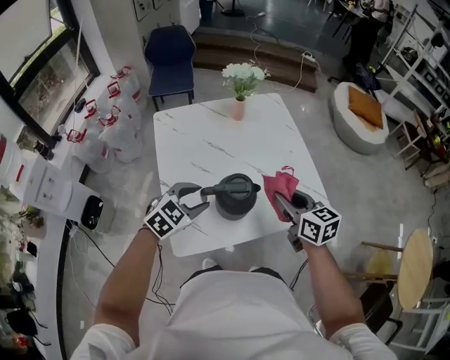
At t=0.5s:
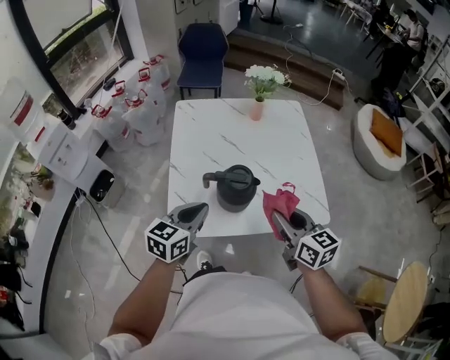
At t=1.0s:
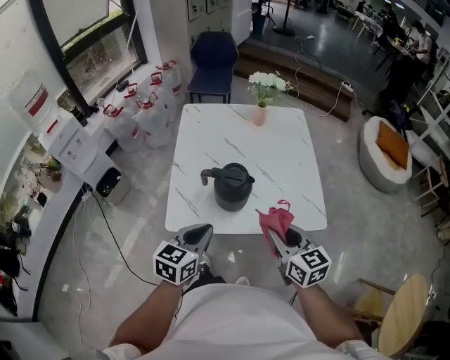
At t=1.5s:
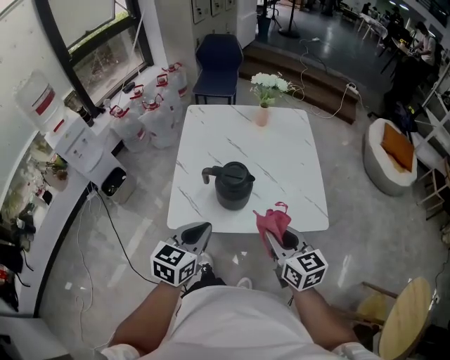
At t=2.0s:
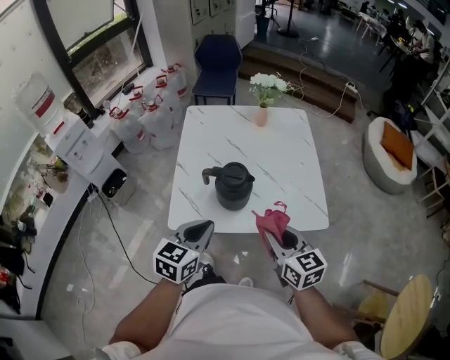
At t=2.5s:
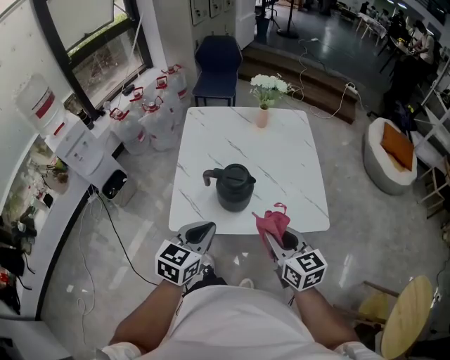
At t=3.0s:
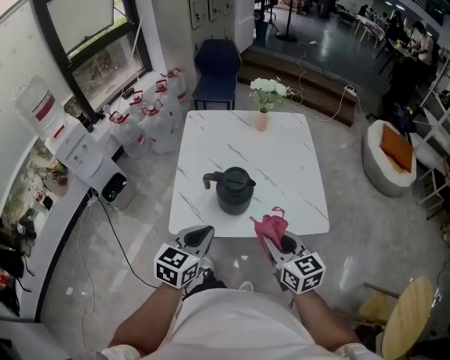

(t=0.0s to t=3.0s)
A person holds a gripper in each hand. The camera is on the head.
t=0.0s - t=1.5s: Both grippers travel together backward, approximately 15 cm. The left gripper turns by about 50 degrees, and closes up.
t=1.5s - t=3.0s: Both grippers stay about where they are.

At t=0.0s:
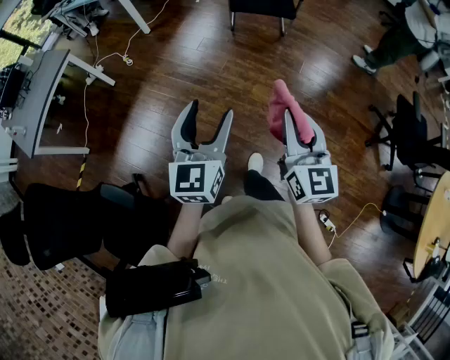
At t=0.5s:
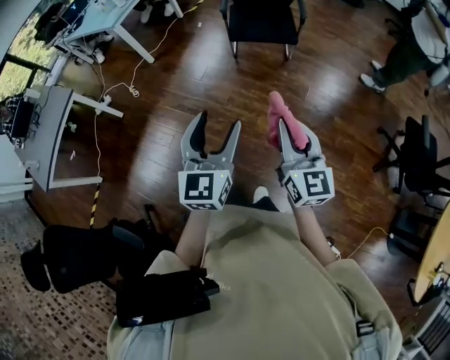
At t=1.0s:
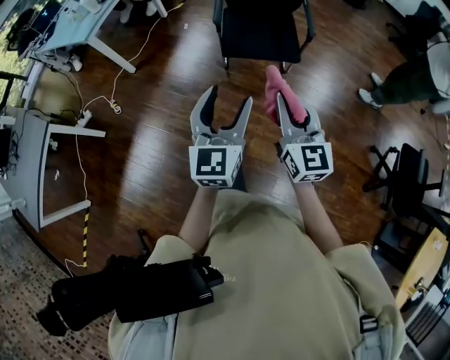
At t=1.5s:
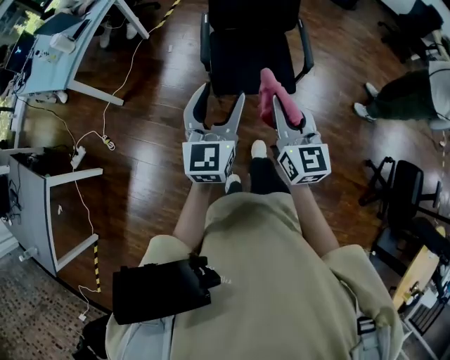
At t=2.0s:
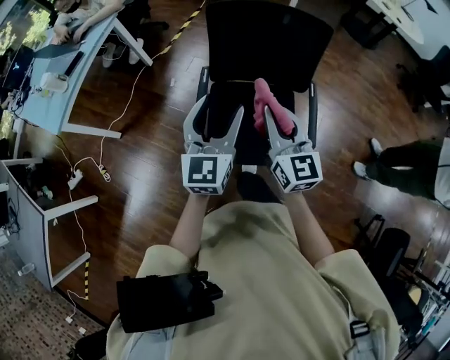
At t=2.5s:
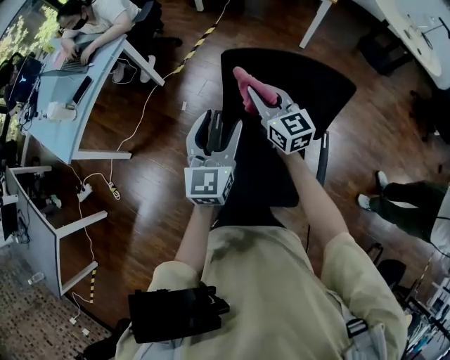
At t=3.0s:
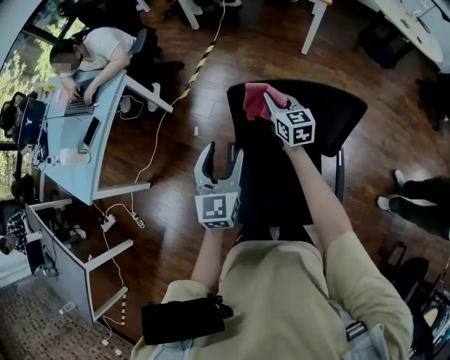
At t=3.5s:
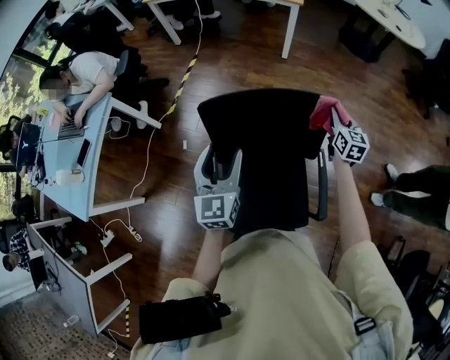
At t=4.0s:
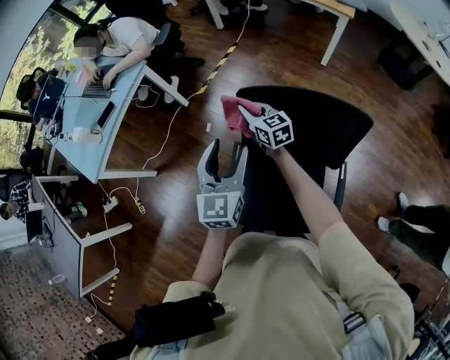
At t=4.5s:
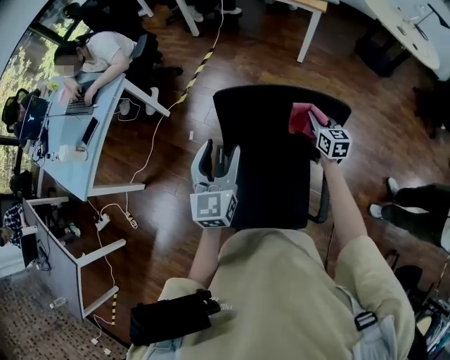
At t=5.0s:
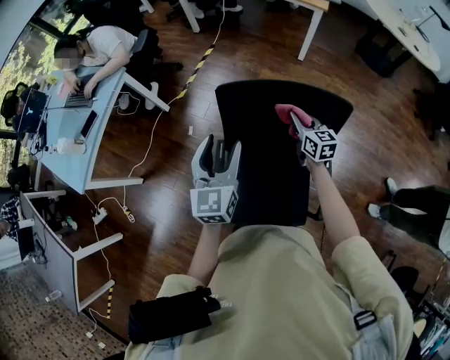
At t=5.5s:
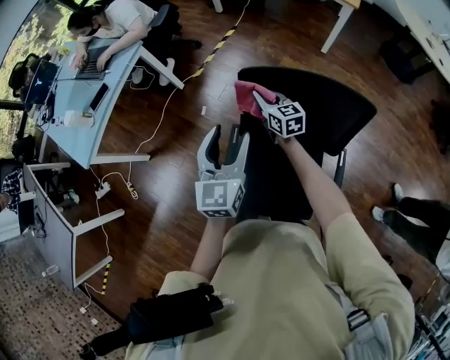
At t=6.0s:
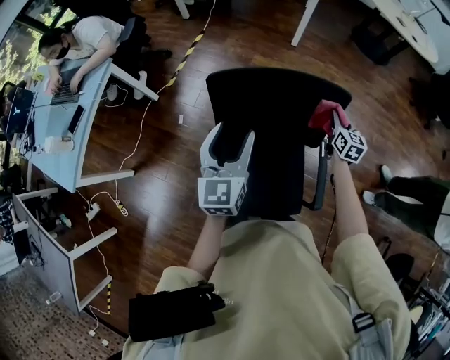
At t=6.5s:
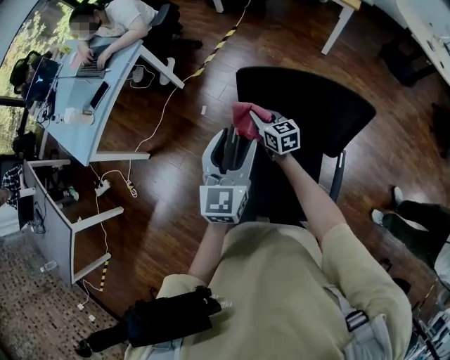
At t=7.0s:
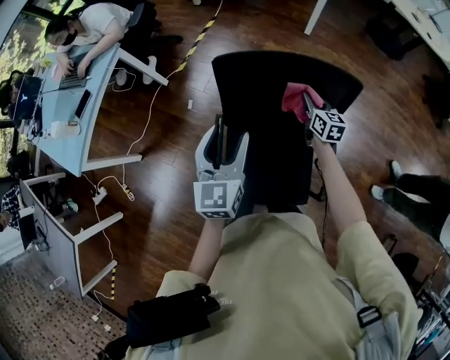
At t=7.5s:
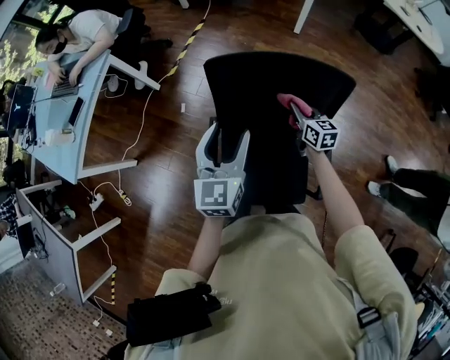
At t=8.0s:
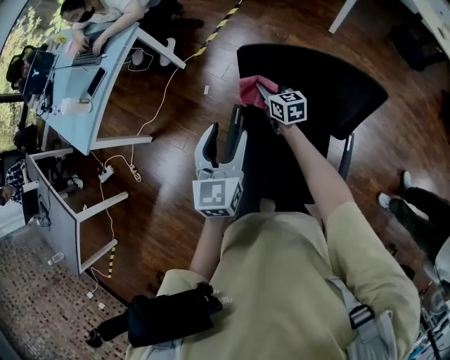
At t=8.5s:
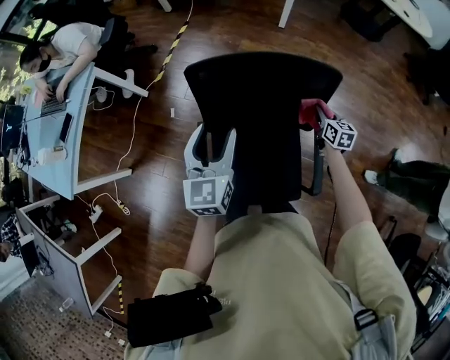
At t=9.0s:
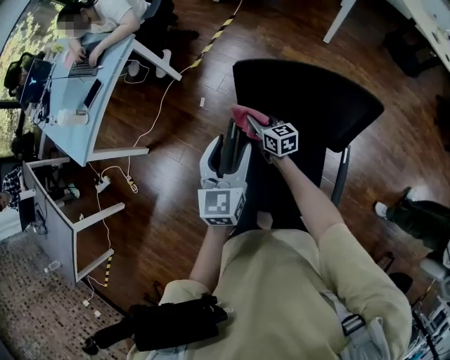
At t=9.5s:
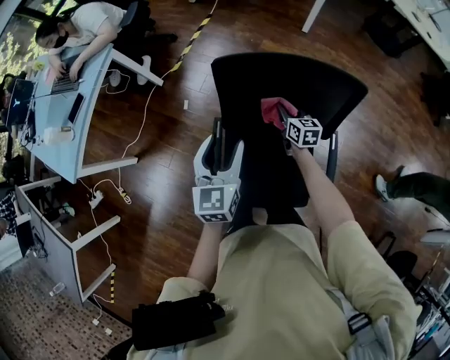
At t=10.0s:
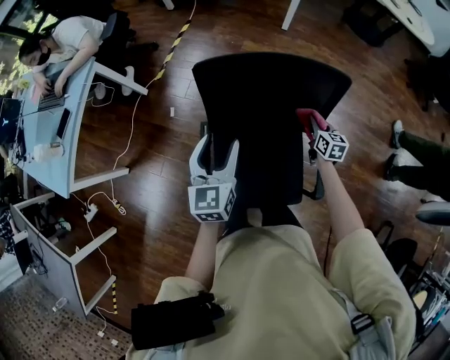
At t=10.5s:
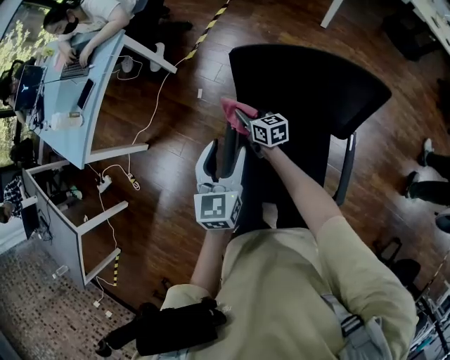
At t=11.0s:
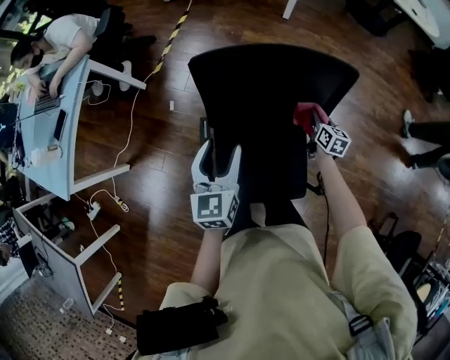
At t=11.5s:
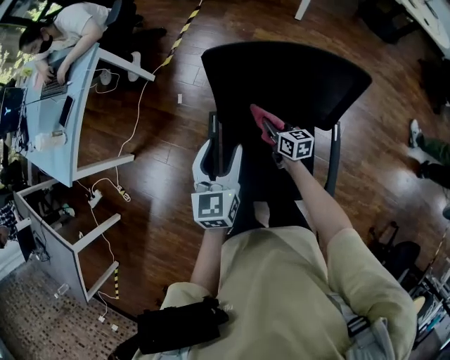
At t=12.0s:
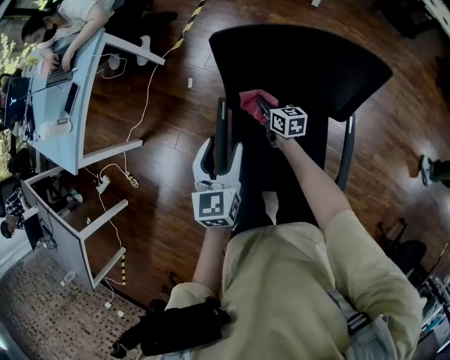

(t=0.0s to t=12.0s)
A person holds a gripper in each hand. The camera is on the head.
t=0.0s - t=2.0s: The two grippers travel together, forward, some 1 m.
t=2.0s - t=4.0s: The right gripper changes place by some 40 cm, and swivels about 30 degrees. The left gripper moves roughly 25 cm.
t=4.0s - t=6.0s: The right gripper shifts by roughly 40 cm, and swivels approximately 50 degrees. The left gripper shifts by approximately 5 cm.
t=6.0s - t=8.0s: The left gripper changes place by some 10 cm; the right gripper moves about 40 cm, and changes its angle by some 40 degrees.
t=8.0s - t=10.0s: The right gripper goes left and right, roughly 40 cm each way, reversing 2 times, and turns by approximately 30 degrees. The left gripper is displaced to the right by about 5 cm.
t=10.0s - t=12.0s: The right gripper changes place by some 30 cm, and rotates roughly 30 degrees. The left gripper shifts by about 10 cm.

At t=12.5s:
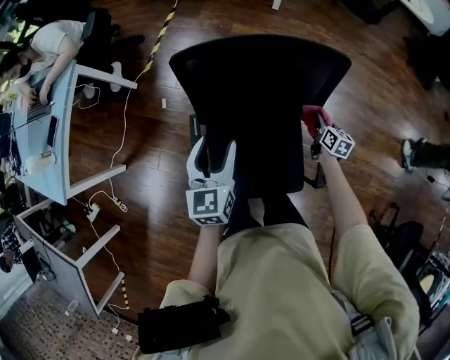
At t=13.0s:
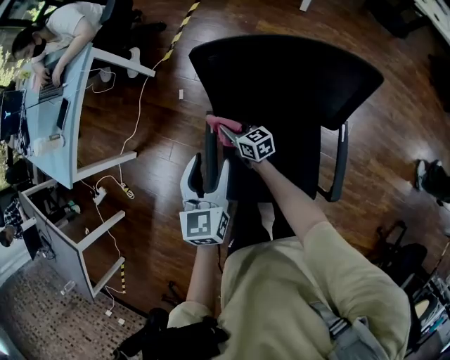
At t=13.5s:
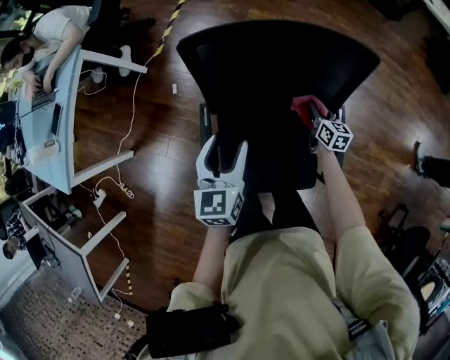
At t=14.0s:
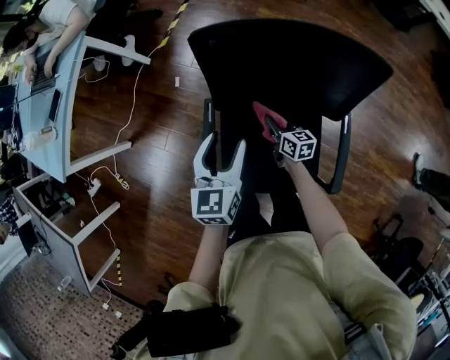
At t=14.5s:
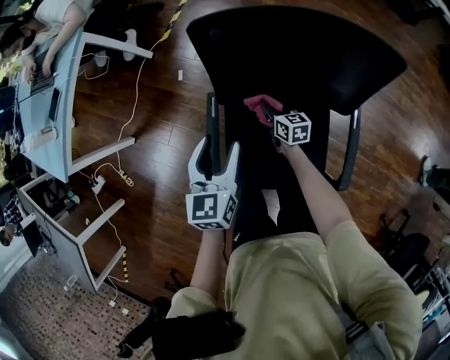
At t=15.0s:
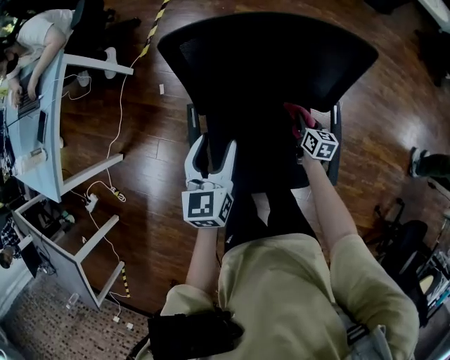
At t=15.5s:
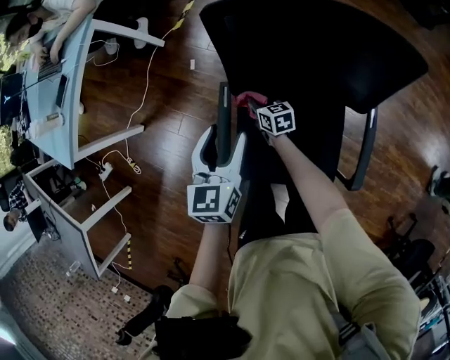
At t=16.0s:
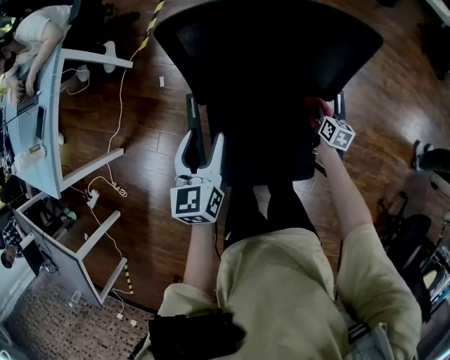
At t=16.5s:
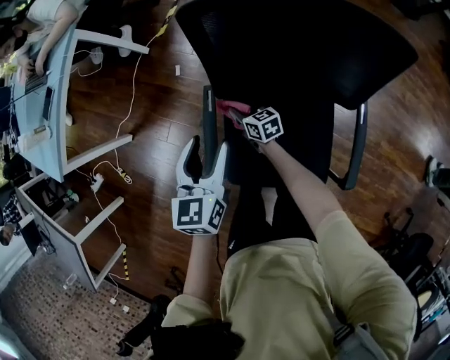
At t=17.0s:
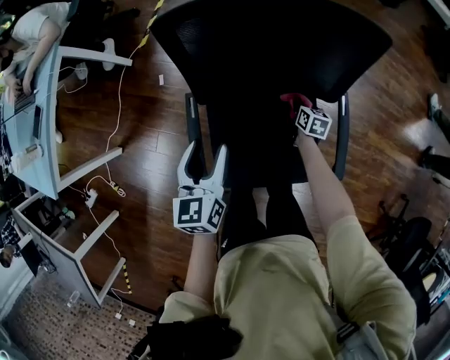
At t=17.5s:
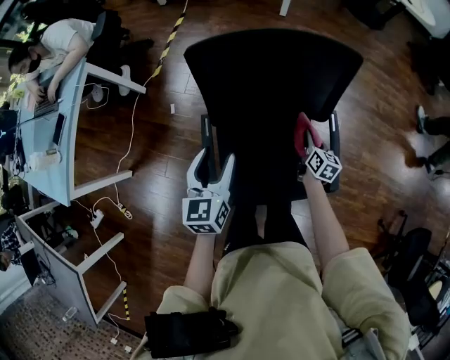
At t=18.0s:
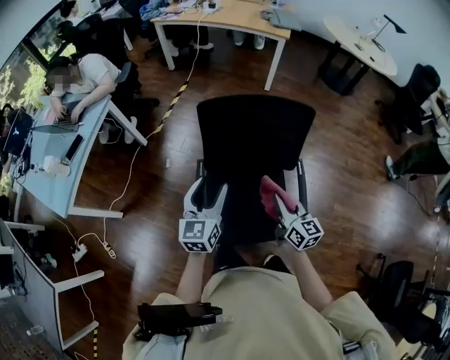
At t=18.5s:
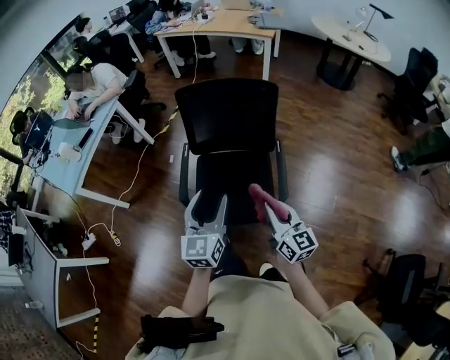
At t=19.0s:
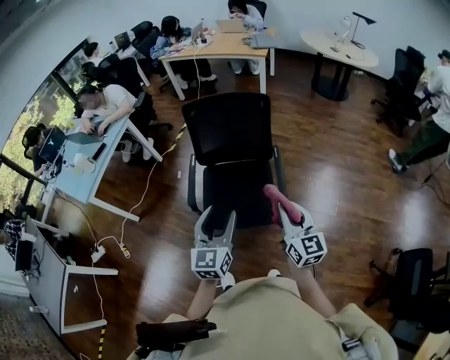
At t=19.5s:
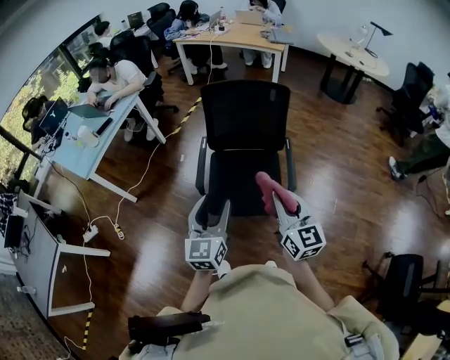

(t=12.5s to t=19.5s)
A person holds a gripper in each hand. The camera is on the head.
t=12.5s - t=14.5s: The right gripper moves roughly 30 cm, and rotates some 30 degrees. The left gripper shifts about 5 cm downward.
t=14.5s - t=16.0s: The right gripper goes left and right, roughly 35 cm each way, reversing 2 times, and swivels approximately 30 degrees.
t=16.0s - t=17.5s: The right gripper shifts about 10 cm upward.
t=17.5s - t=19.5s: Both grippers are carried backward, roughly 40 cm. The left gripper is displaced upward by approximately 20 cm, and rotates roughly 20 degrees. Meanwhile the right gripper goes roughly 40 cm upward, and tilts its fingers roughly 30 degrees upward.

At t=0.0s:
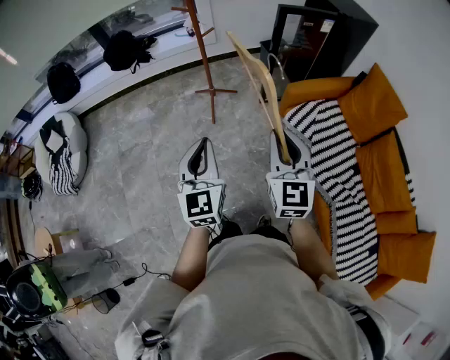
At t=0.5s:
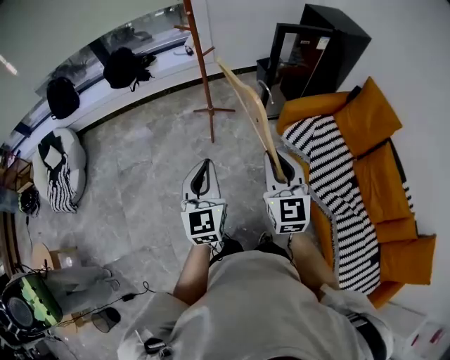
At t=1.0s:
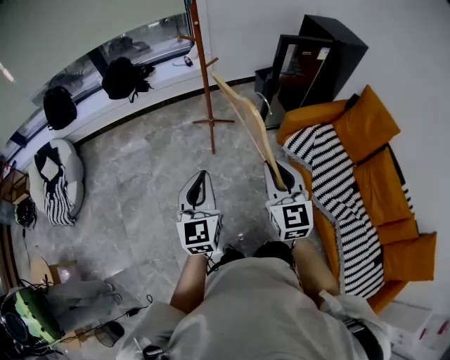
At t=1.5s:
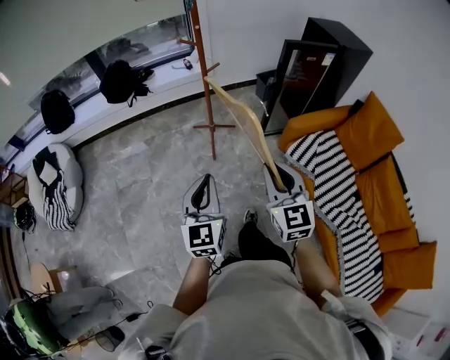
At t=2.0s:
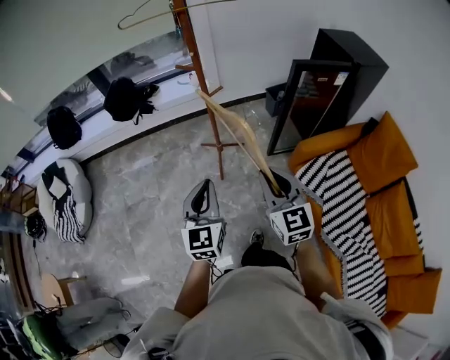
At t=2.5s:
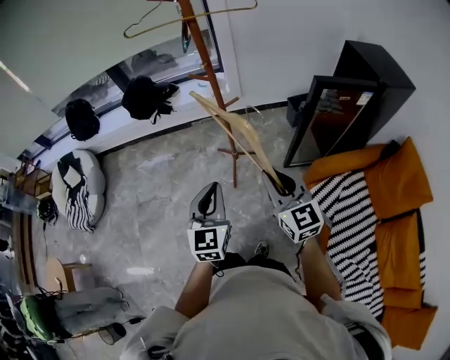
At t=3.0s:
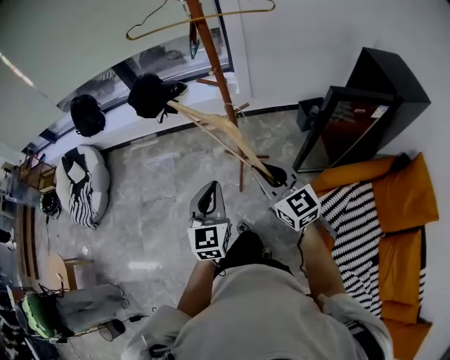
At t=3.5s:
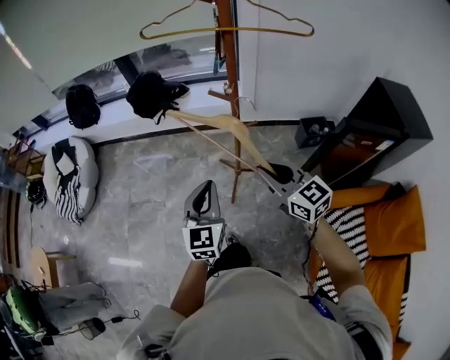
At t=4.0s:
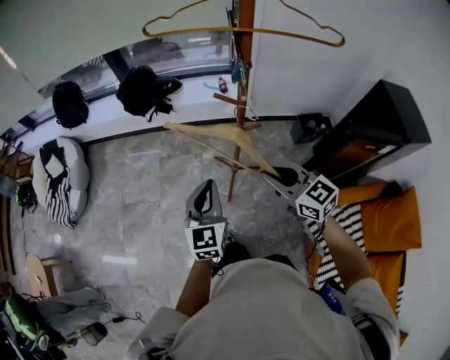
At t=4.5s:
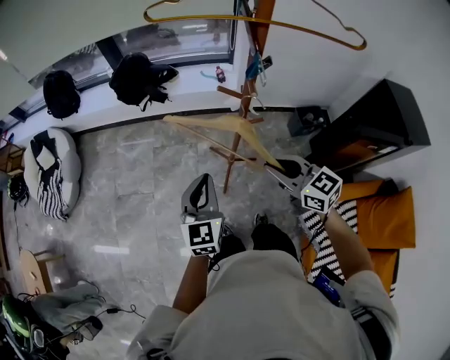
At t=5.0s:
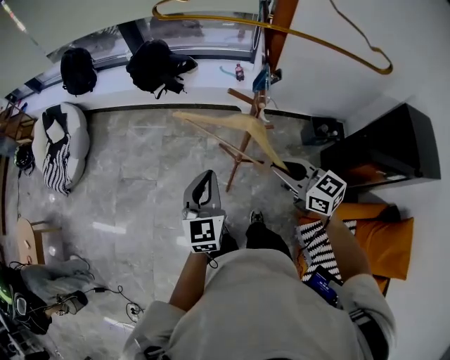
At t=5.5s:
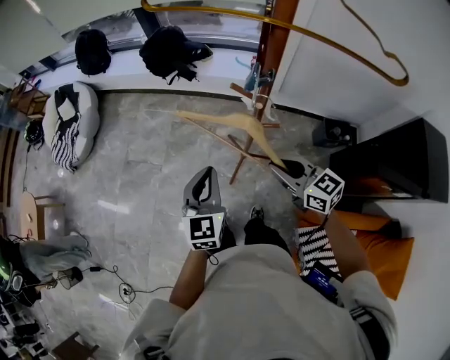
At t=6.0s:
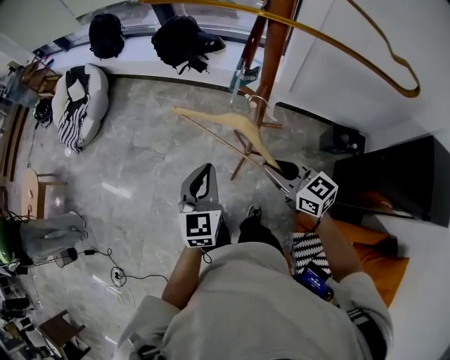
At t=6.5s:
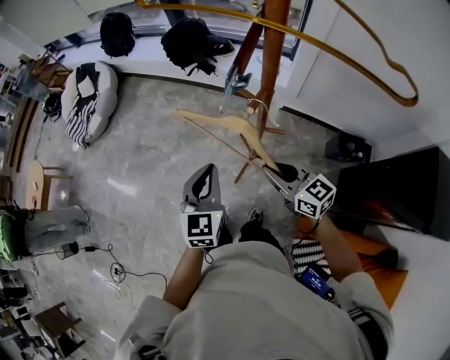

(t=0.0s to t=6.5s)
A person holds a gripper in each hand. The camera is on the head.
t=0.0s - t=2.0s: Both grippers travel together forward, roughly 20 cm.
t=2.0s - t=4.5s: The left gripper changes place by some 30 cm, while the right gripper ends up roughly 35 cm from where it was, and swivels some 40 degrees.
t=4.5s - t=6.5s: The right gripper heads to the right, downward and forward, covering approximately 10 cm, and changes its angle by approximately 20 degrees; the left gripper moves to the right, about 10 cm, and changes its angle by roughly 20 degrees.
